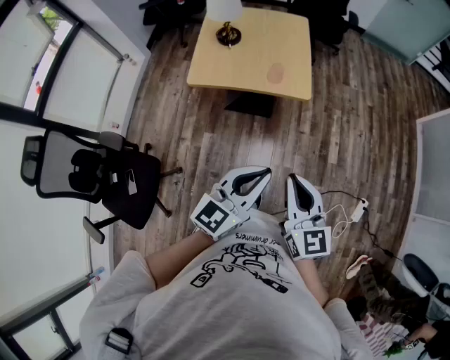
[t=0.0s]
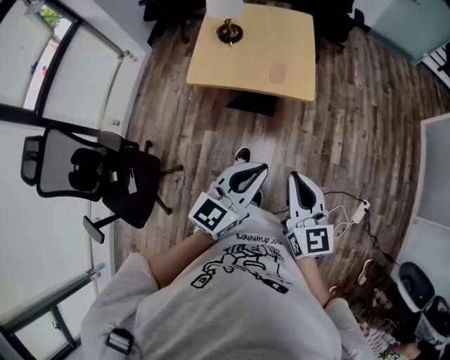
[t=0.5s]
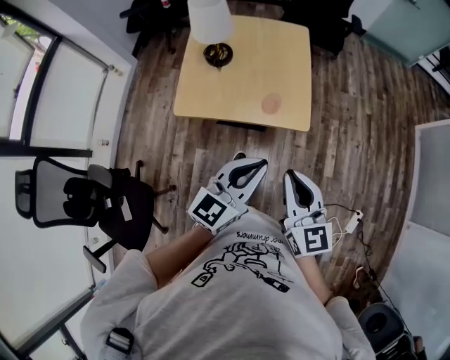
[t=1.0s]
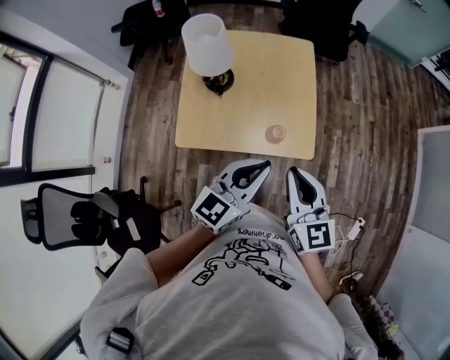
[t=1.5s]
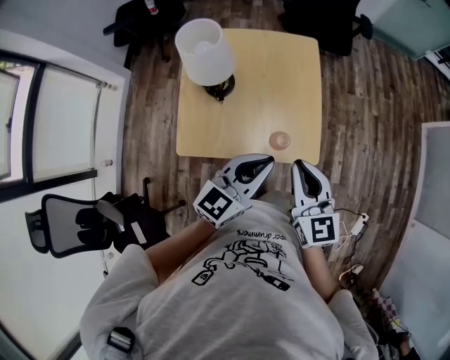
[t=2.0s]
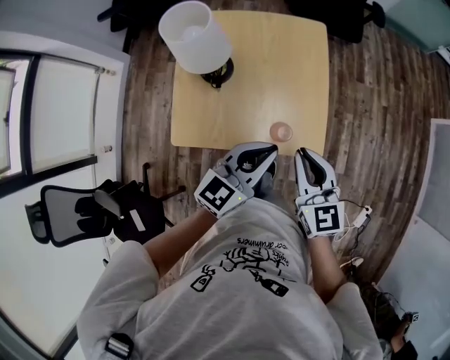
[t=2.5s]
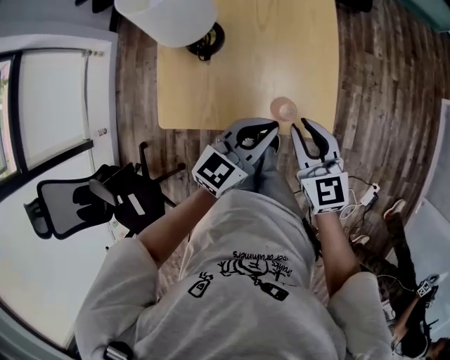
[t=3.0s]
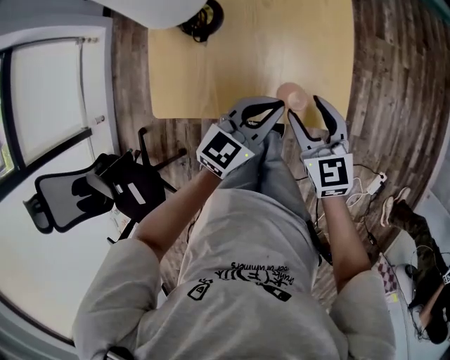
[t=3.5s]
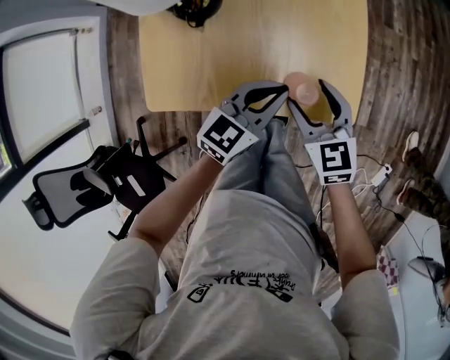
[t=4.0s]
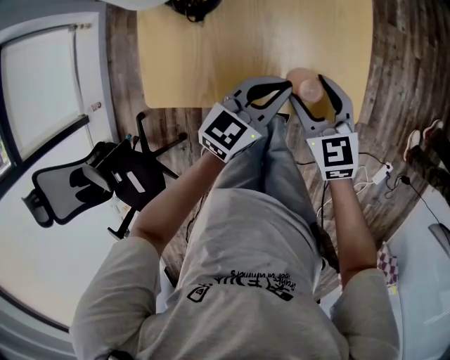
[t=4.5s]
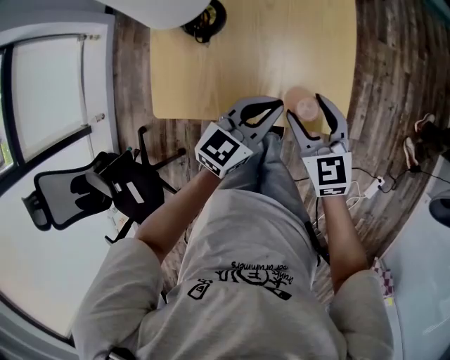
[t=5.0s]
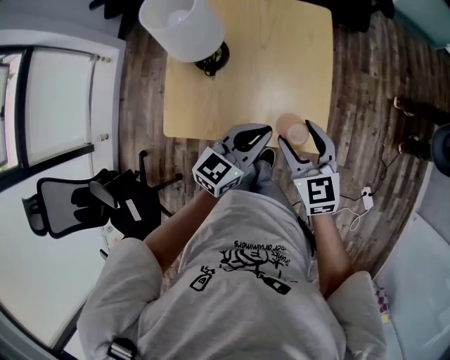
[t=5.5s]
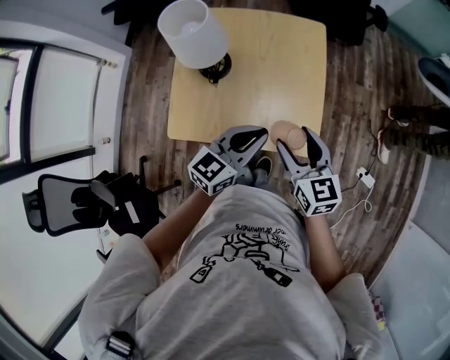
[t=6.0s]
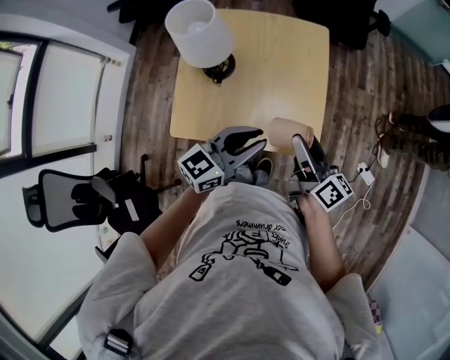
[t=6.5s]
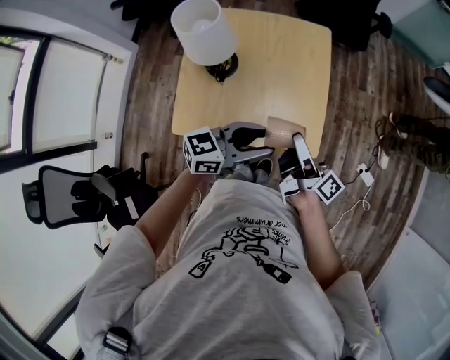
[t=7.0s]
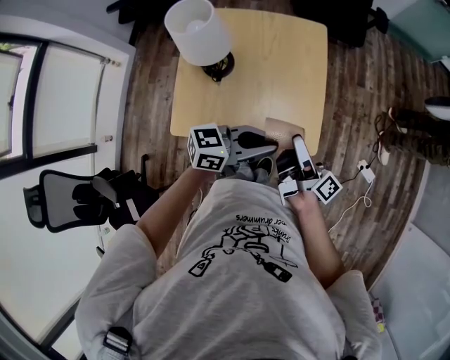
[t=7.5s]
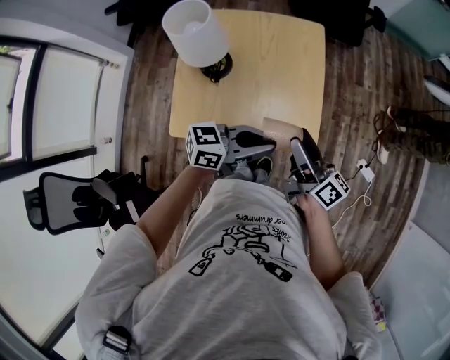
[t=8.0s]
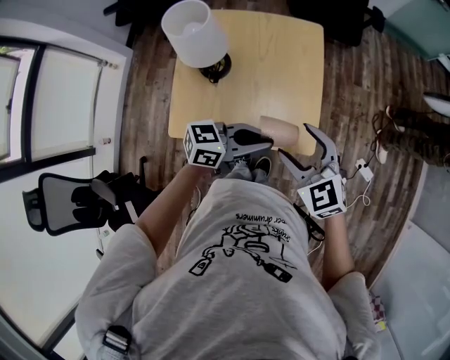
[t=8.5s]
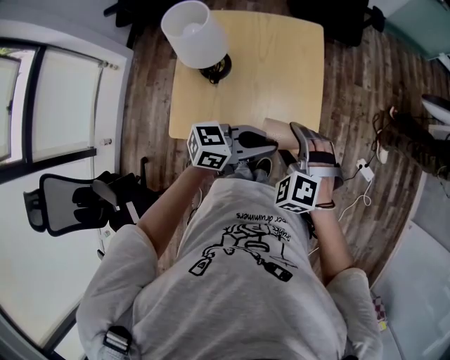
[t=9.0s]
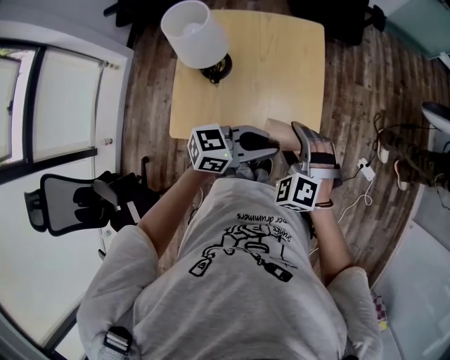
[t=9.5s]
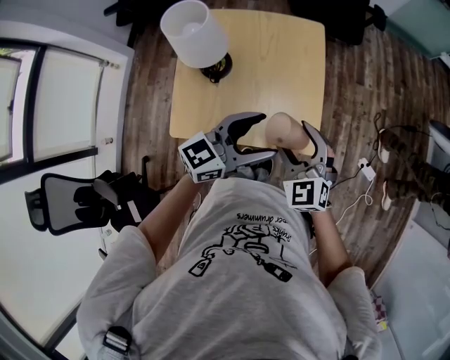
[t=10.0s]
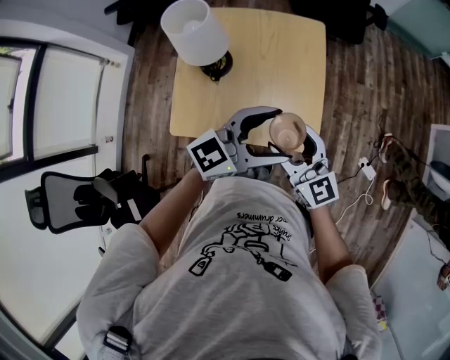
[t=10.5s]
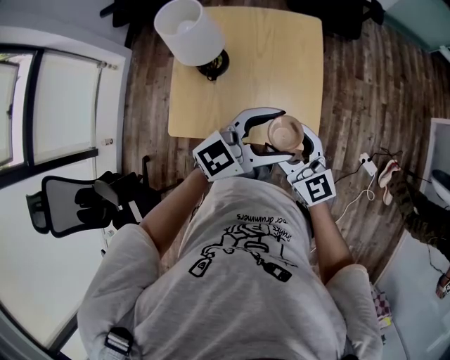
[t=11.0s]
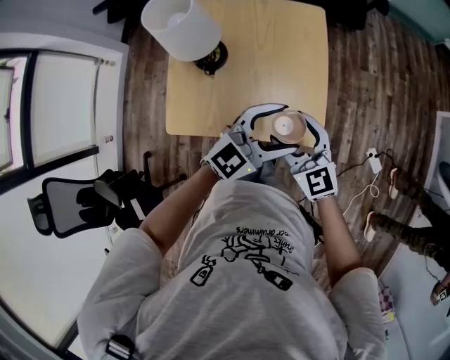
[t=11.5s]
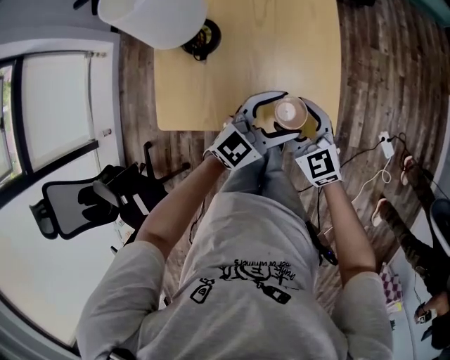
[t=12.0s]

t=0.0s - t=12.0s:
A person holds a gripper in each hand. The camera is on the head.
t=0.0s - t=2.0s: The pair of grippers is taken forward, some 40 cm.
t=2.0s - t=4.0s: Both grippers travel together downward, approximately 25 cm. The right gripper rotates approximately 20 degrees, and opens up.
t=4.0s - t=6.0s: Both grippers move upward, about 15 cm.
t=6.0s - t=8.0s: The right gripper twists roughly 40 degrees clockwise, seen from behind; the left gripper moves approximately 5 cm, turns by about 40 degrees, and opens, then closes once more.
t=8.0s - t=10.0s: The left gripper changes its angle by about 20 degrees, and opens up. The right gripper rolls counterclockwise, seen from behind, by roughly 80 degrees.
t=10.0s - t=12.0s: Both grippers travel together downward, roughly 15 cm. The left gripper rotates about 20 degrees. Meanwhile the right gripper swivels roughly 20 degrees.

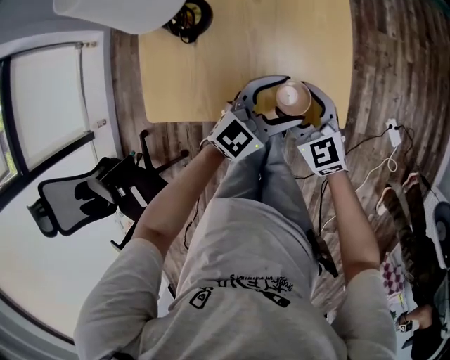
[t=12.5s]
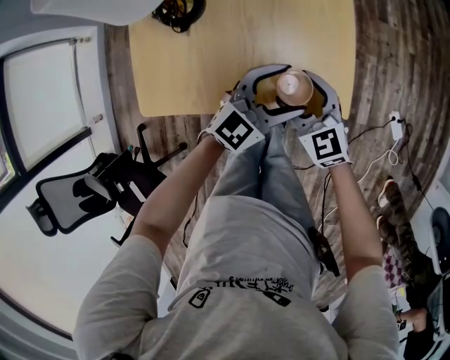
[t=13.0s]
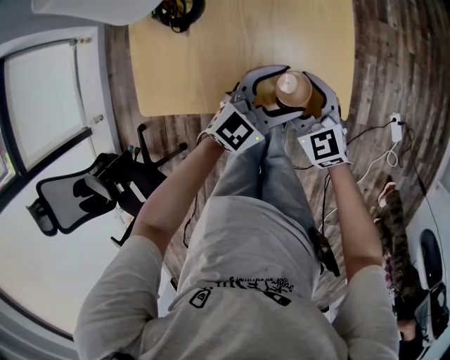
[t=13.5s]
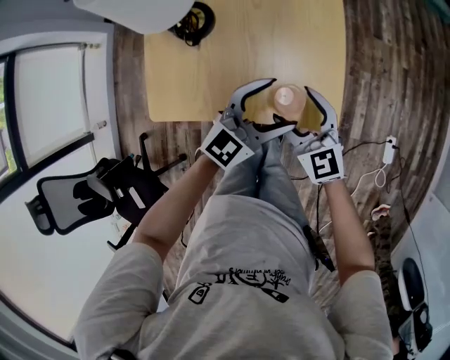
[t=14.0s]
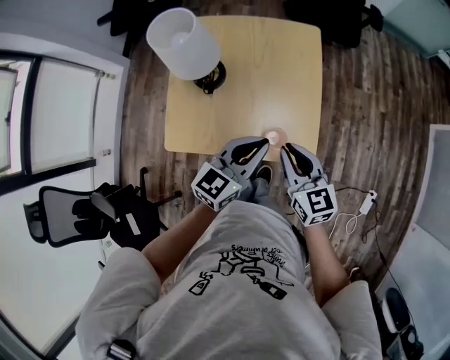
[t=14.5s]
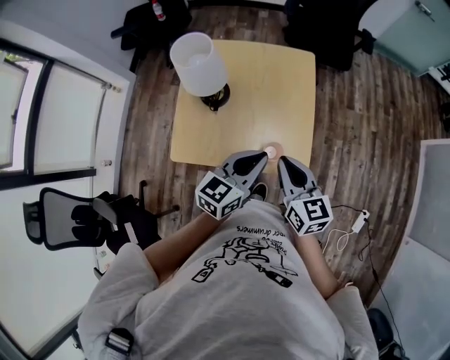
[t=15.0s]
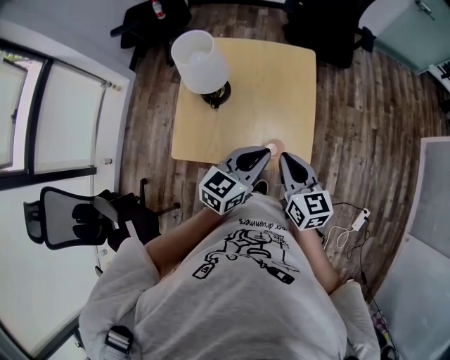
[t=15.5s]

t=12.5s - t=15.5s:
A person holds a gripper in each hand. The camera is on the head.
t=12.5s - t=14.0s: The grippers make only small movements.
t=14.0s - t=15.5s: The grippers both shift upward by approximately 15 cm. The left gripper swivels some 30 degrees, and closes. Meanwhile the right gripper changes its angle by some 30 degrees, and closes.

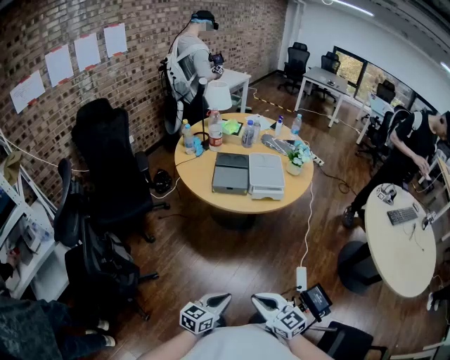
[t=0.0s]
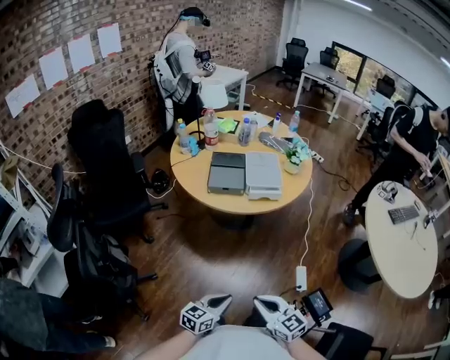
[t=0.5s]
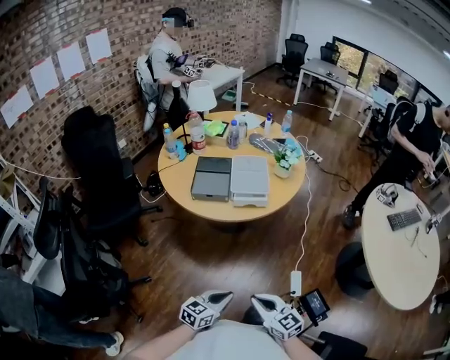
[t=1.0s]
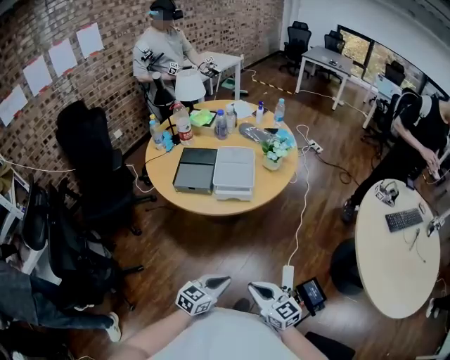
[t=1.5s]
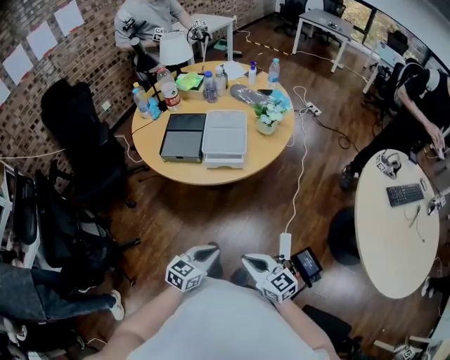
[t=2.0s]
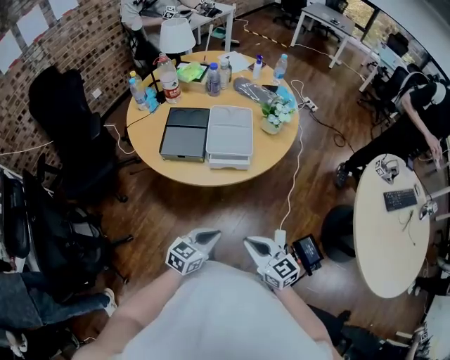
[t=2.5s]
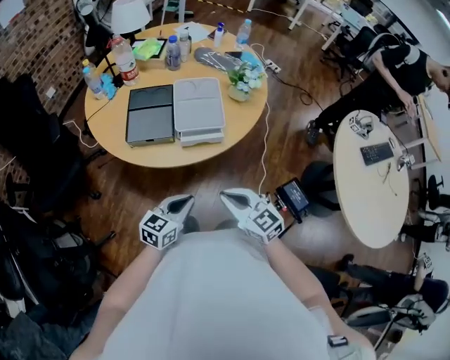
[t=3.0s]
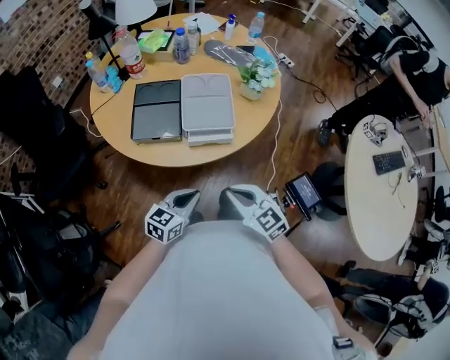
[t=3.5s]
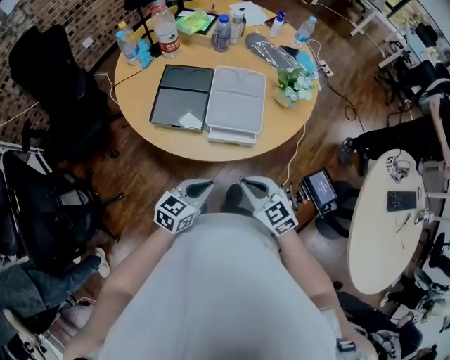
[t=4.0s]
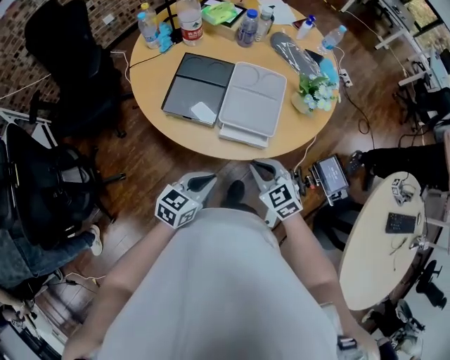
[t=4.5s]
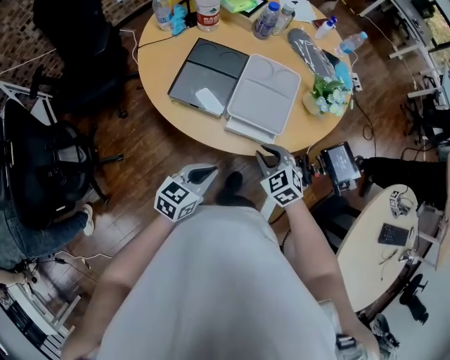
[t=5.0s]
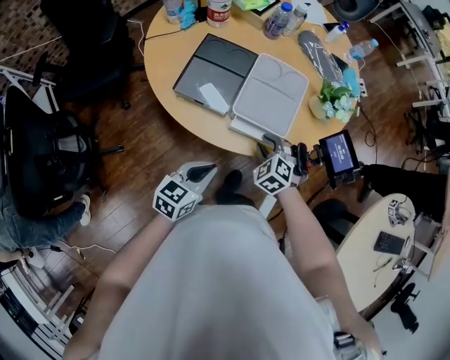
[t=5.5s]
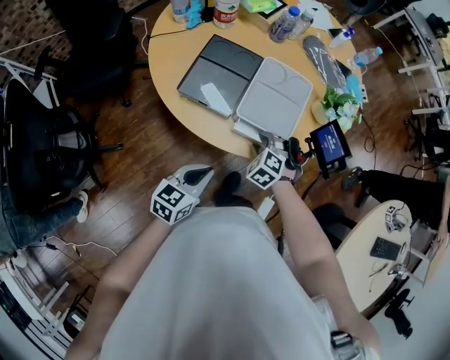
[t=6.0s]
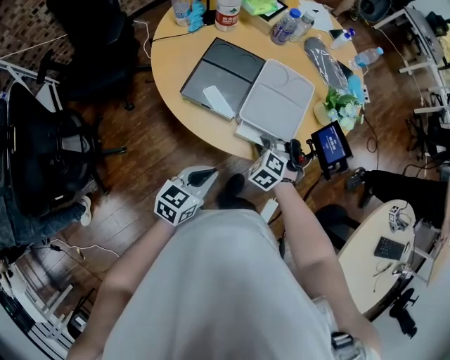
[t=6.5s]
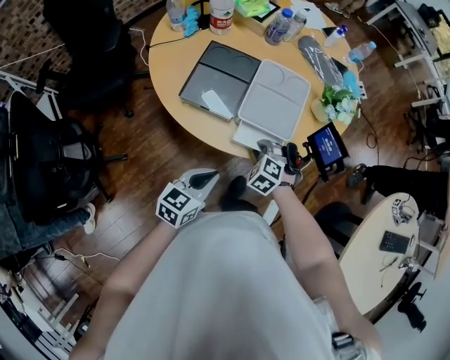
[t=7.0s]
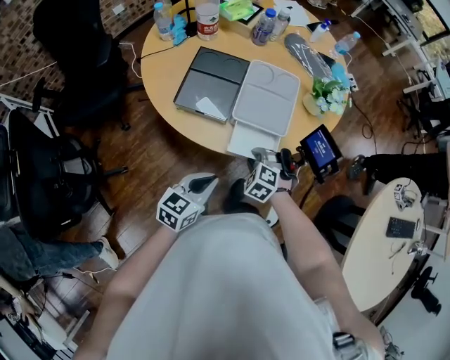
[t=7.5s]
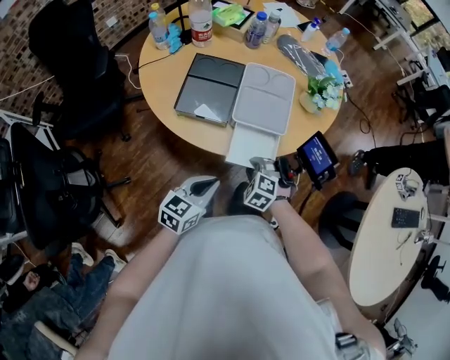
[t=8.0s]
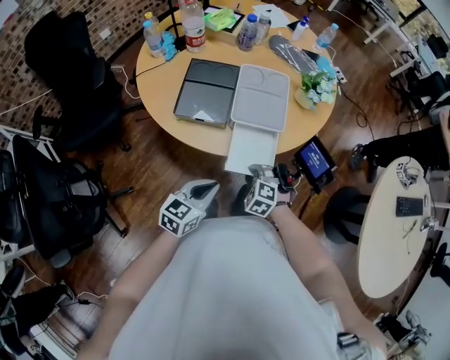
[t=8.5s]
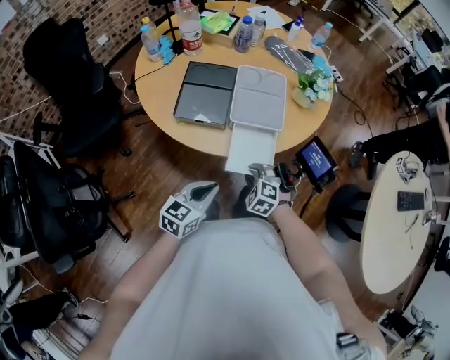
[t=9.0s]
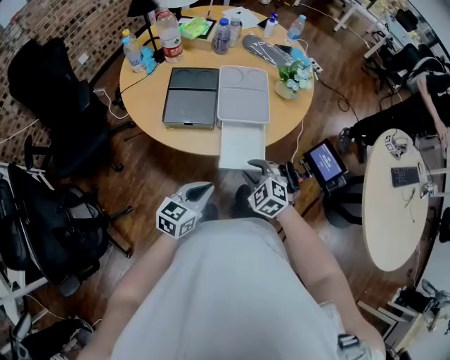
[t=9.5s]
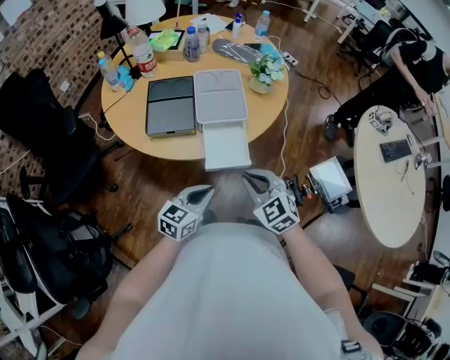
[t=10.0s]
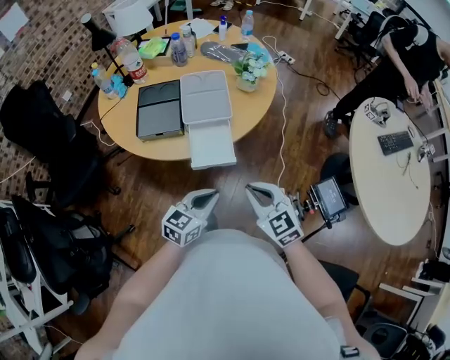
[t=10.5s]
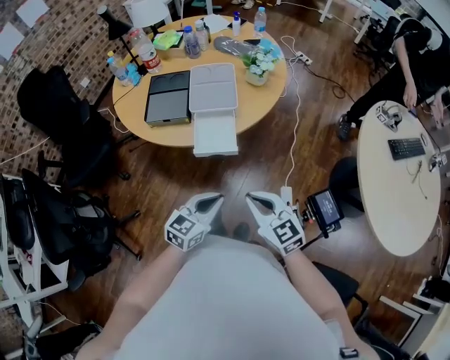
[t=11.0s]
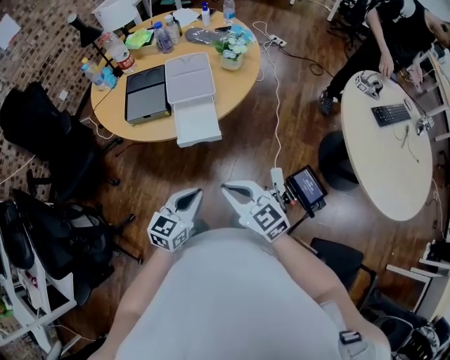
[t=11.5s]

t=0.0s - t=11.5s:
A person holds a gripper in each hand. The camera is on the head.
t=0.0s - t=2.0s: Both grippers travel together to the right and forward, approximately 25 cm.
t=2.0s - t=4.0s: The grippers both shift forward by about 25 cm. The right gripper turns by some 30 degrees.
t=4.0s - t=6.0s: The right gripper is displaced forward and downward by roughly 20 cm, tips its fingers downward by some 30 degrees, and opens up.
t=6.0s - t=7.5s: The right gripper shifts about 5 cm backward.
t=7.5s - t=9.5s: The right gripper is displaced backward and upward by some 10 cm, and swivels roughly 20 degrees. Meanwhile the left gripper moves roughly 5 cm.
t=9.5s - t=11.5s: The left gripper moves backward and to the right, approximately 15 cm. The right gripper shifts roughly 25 cm backward, upward and to the right, tips its fingers upward by approximately 30 degrees, and closes up.
